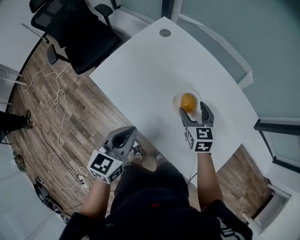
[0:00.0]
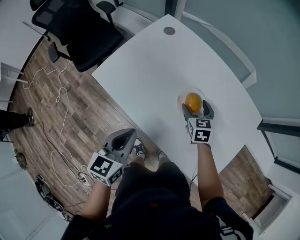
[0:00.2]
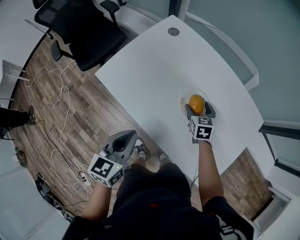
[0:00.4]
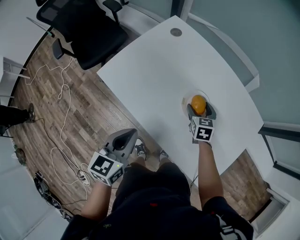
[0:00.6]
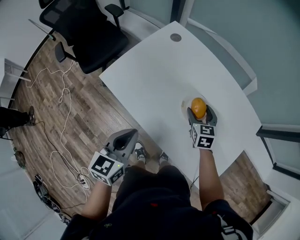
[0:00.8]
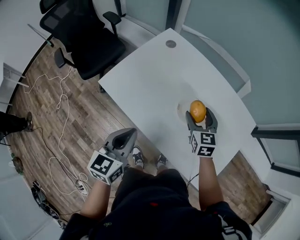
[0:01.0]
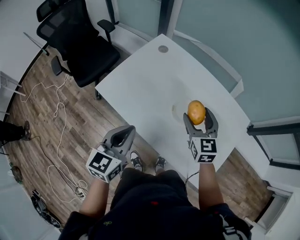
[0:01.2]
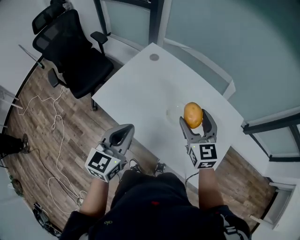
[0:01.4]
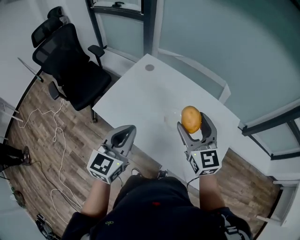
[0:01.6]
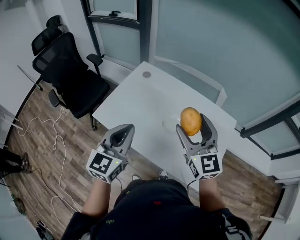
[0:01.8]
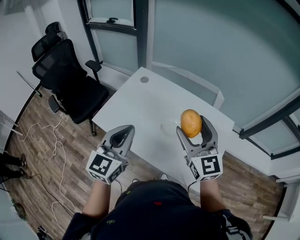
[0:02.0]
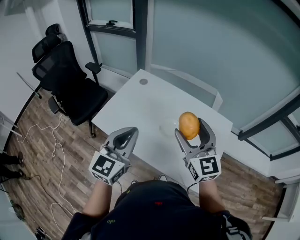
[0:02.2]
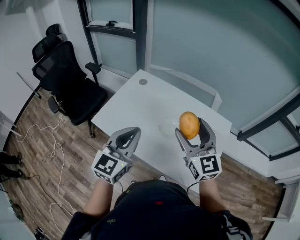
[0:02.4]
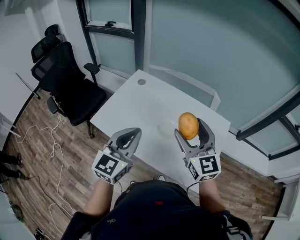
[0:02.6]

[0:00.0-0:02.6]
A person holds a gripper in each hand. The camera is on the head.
0:00.0 to 0:01.2: The right gripper travels upward by about 10 cm. Meanwhile the left gripper goes some 5 cm upward.
0:01.2 to 0:02.6: The left gripper moves upward and to the right, roughly 15 cm, and swivels about 20 degrees. Meanwhile the right gripper goes about 20 cm upward and backward.

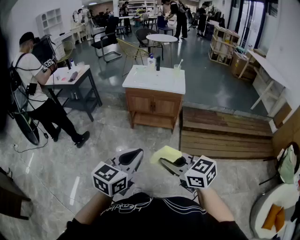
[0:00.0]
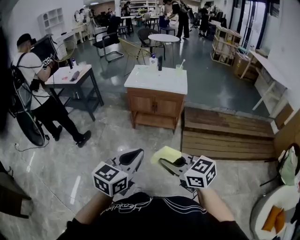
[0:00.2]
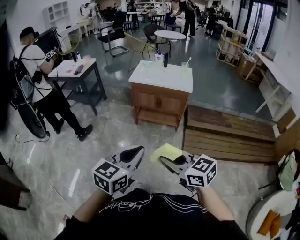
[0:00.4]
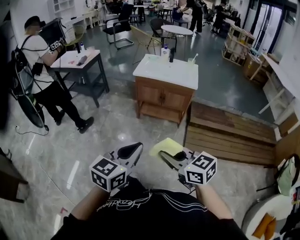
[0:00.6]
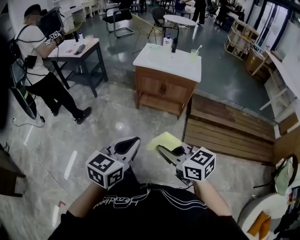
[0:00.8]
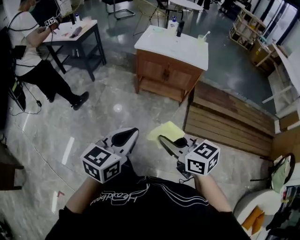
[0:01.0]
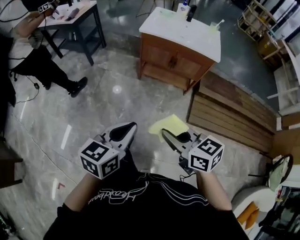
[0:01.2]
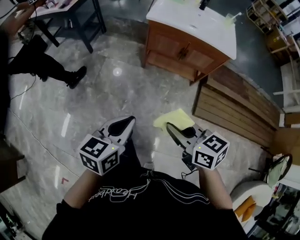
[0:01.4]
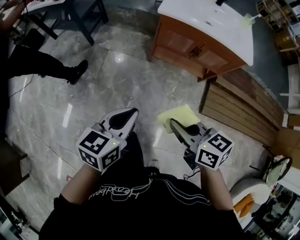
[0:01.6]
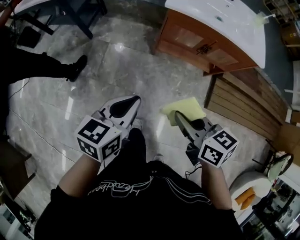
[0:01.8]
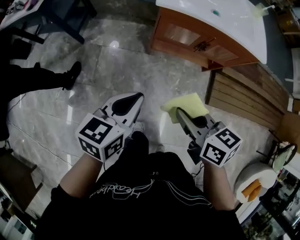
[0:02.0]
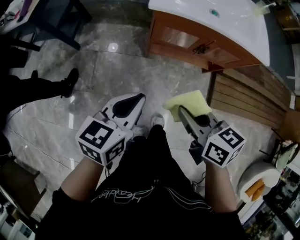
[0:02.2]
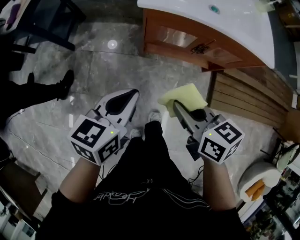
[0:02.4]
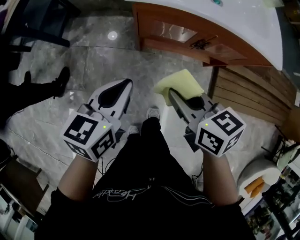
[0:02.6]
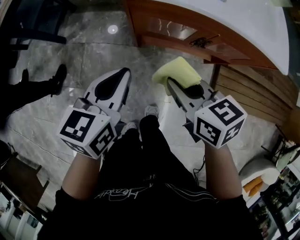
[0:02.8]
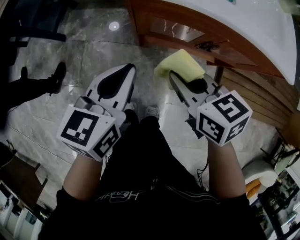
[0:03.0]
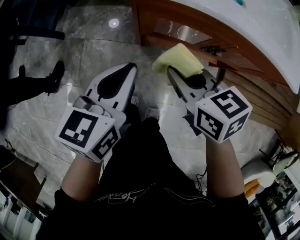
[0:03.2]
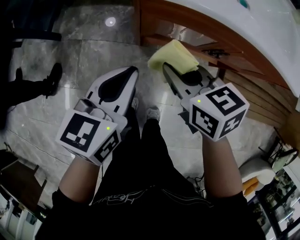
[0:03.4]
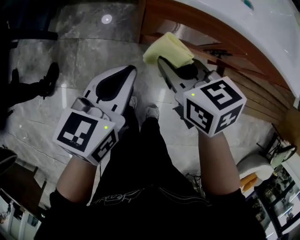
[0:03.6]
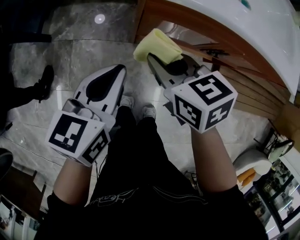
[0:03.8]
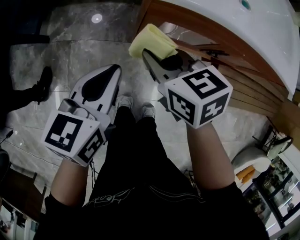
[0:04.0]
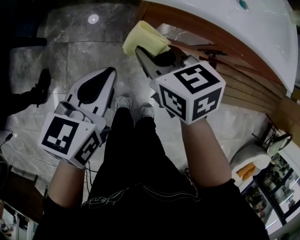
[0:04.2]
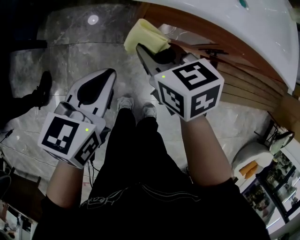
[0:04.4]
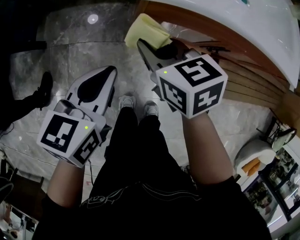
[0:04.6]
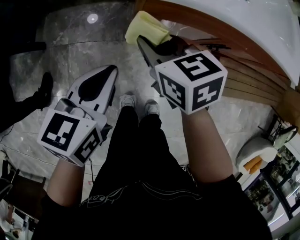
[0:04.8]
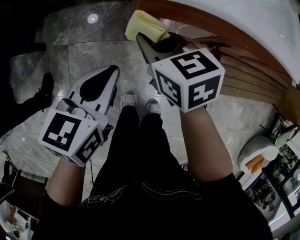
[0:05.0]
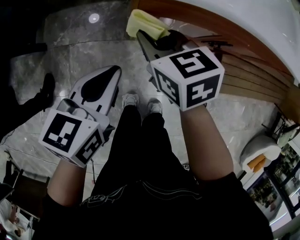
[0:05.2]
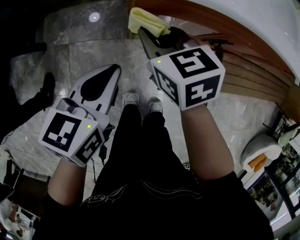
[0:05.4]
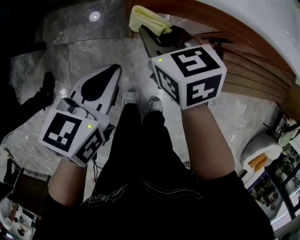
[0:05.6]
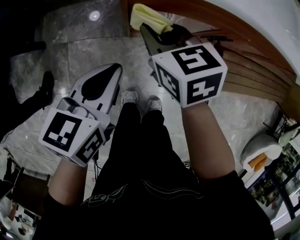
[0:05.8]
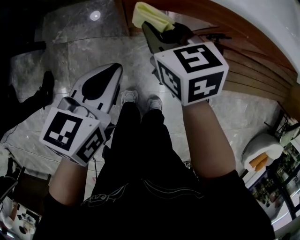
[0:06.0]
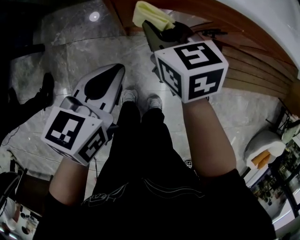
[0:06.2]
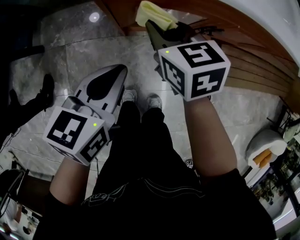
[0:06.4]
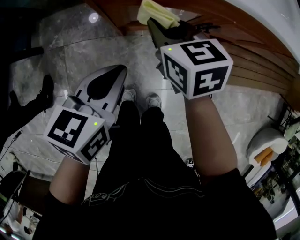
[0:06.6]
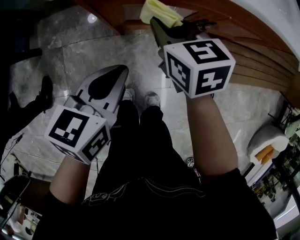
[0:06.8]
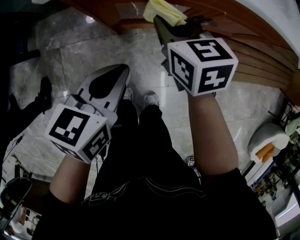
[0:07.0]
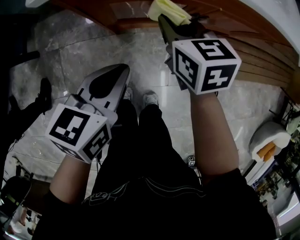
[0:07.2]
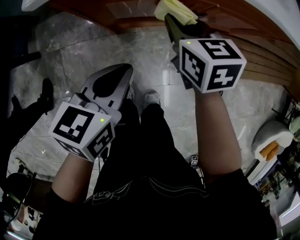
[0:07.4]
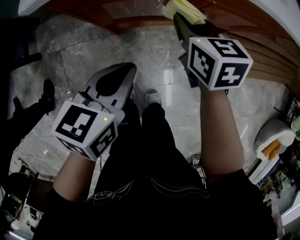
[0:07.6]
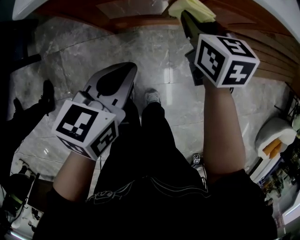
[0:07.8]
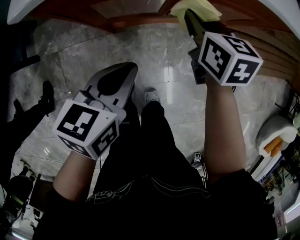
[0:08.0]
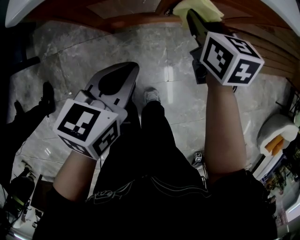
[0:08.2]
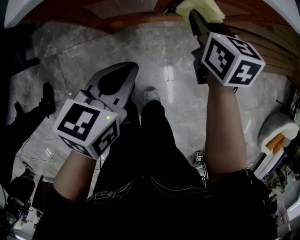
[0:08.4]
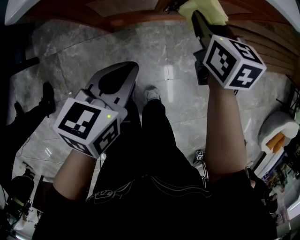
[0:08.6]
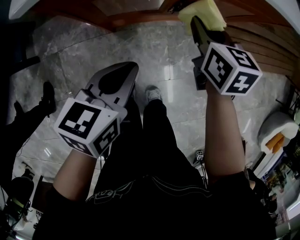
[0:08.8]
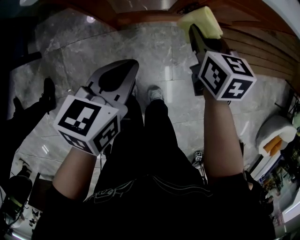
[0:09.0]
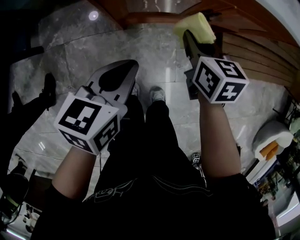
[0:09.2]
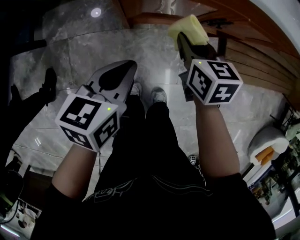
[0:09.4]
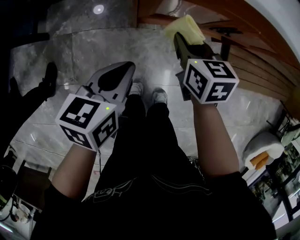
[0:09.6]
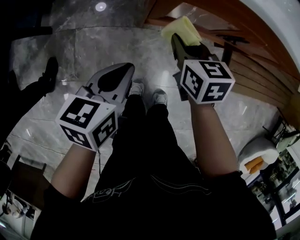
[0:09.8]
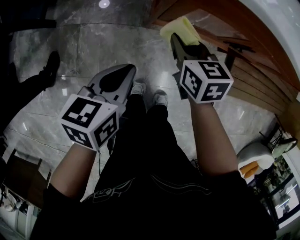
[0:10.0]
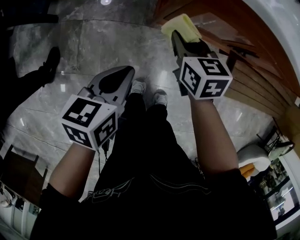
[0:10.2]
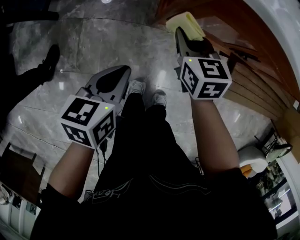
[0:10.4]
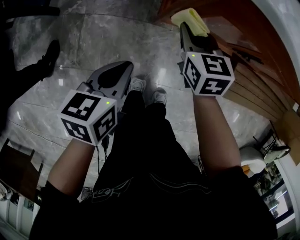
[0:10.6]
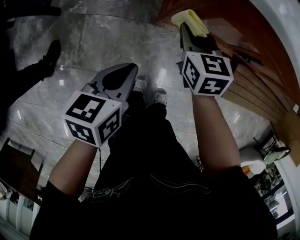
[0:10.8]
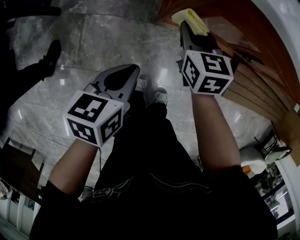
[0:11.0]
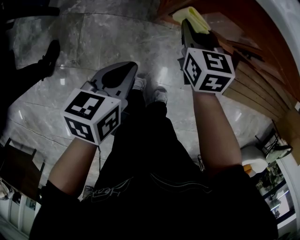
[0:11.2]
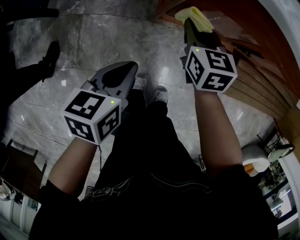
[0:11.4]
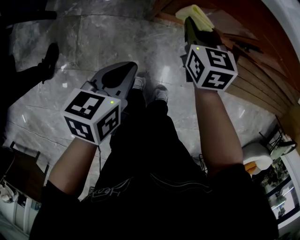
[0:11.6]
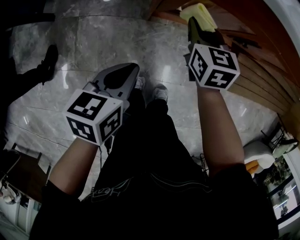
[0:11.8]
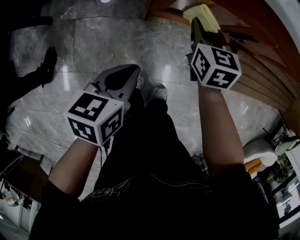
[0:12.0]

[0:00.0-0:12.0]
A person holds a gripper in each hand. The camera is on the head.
0:00.0 to 0:01.6: The right gripper goes some 40 cm forward and downward, and turns by approximately 30 degrees, while the left gripper moves forward, downward and to the left, about 40 cm, and rotates roughly 20 degrees.
0:01.6 to 0:03.0: Both grippers move forward and downward, about 35 cm.
0:03.0 to 0:04.4: The right gripper travels forward, to the left and downward by some 15 cm. The left gripper shifts some 10 cm to the left, downward and forward.
0:04.4 to 0:06.0: The right gripper ends up approximately 5 cm from where it was.
0:06.0 to 0:07.6: The two grippers go about 15 cm to the right.
0:07.6 to 0:09.0: The right gripper ends up about 5 cm from where it was.
0:09.0 to 0:10.4: The two grippers go some 20 cm to the left. The right gripper swivels approximately 20 degrees. The left gripper changes its angle by roughly 20 degrees.
0:10.4 to 0:12.0: Both grippers travel together to the right, roughly 10 cm.

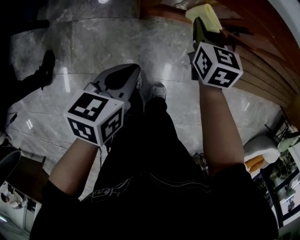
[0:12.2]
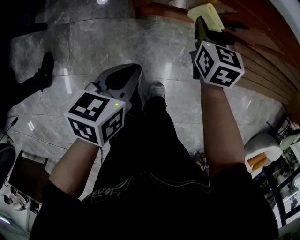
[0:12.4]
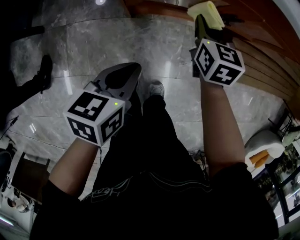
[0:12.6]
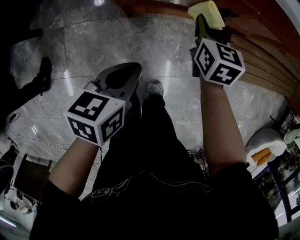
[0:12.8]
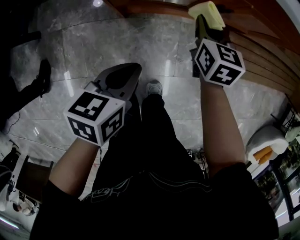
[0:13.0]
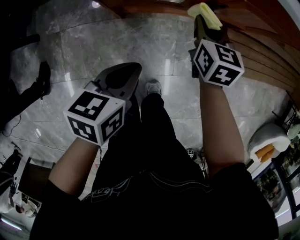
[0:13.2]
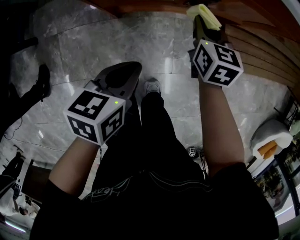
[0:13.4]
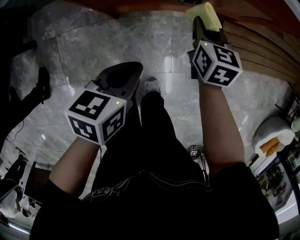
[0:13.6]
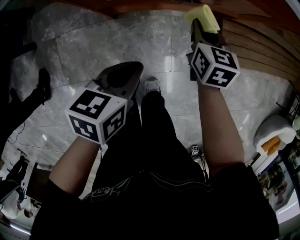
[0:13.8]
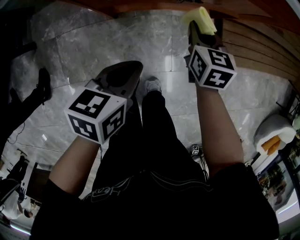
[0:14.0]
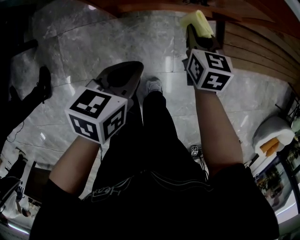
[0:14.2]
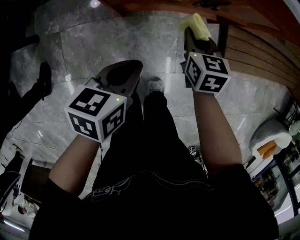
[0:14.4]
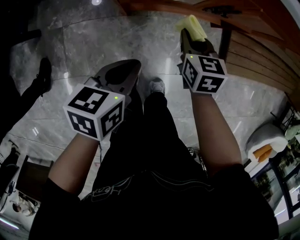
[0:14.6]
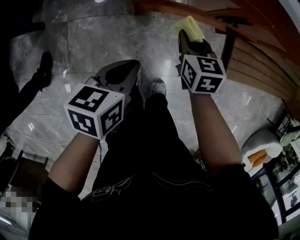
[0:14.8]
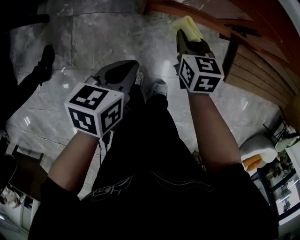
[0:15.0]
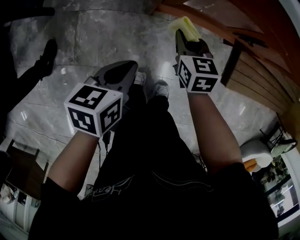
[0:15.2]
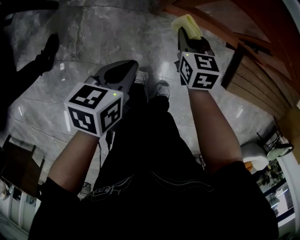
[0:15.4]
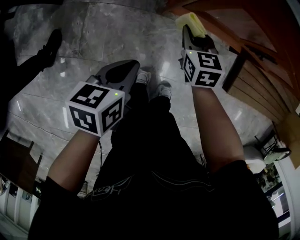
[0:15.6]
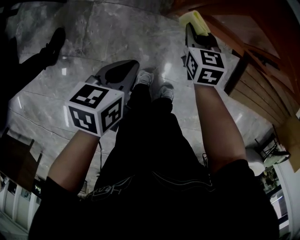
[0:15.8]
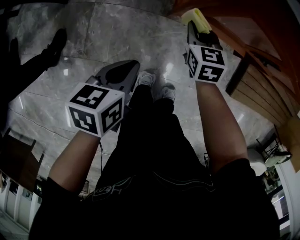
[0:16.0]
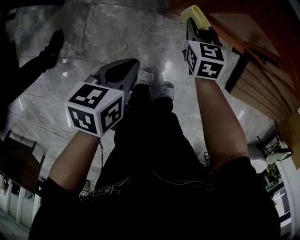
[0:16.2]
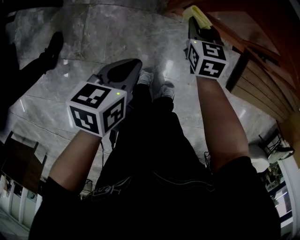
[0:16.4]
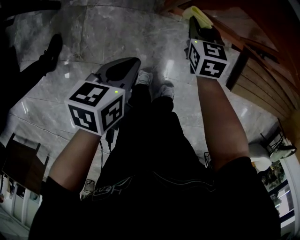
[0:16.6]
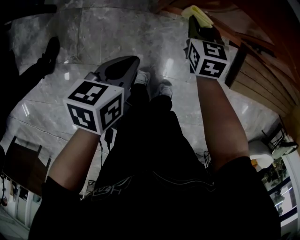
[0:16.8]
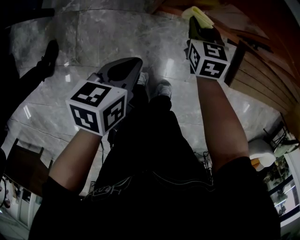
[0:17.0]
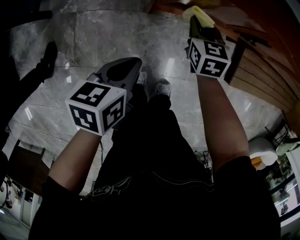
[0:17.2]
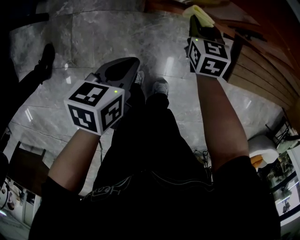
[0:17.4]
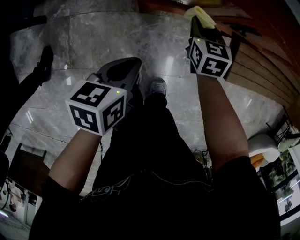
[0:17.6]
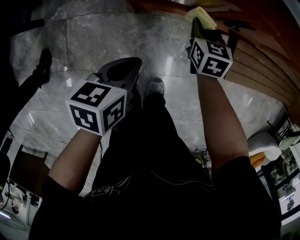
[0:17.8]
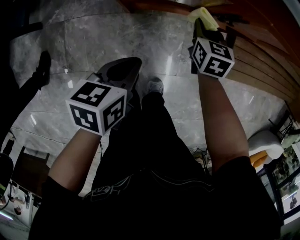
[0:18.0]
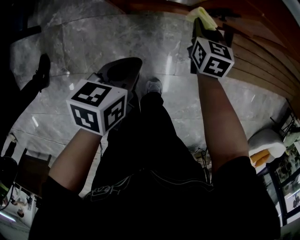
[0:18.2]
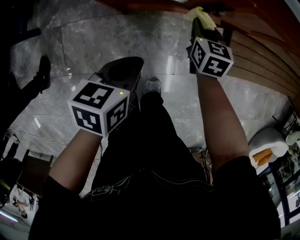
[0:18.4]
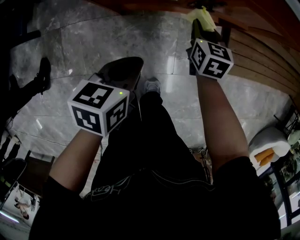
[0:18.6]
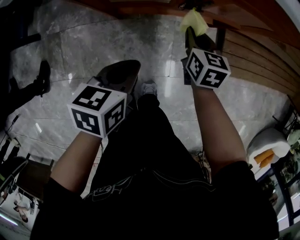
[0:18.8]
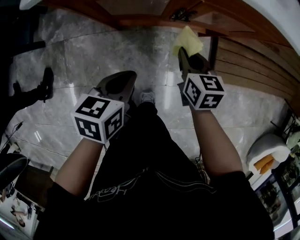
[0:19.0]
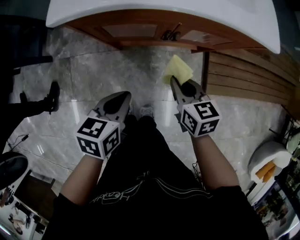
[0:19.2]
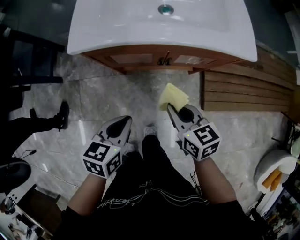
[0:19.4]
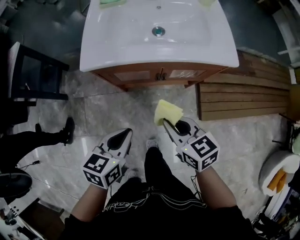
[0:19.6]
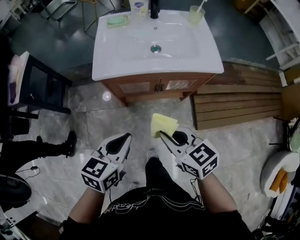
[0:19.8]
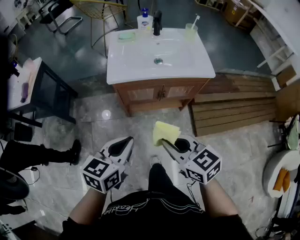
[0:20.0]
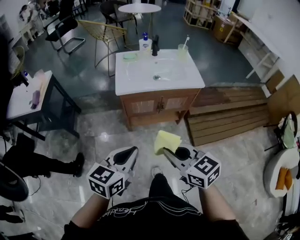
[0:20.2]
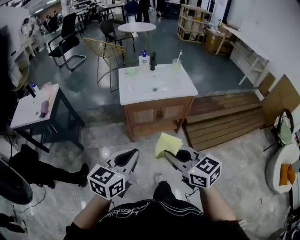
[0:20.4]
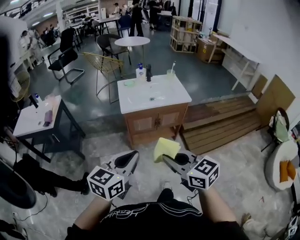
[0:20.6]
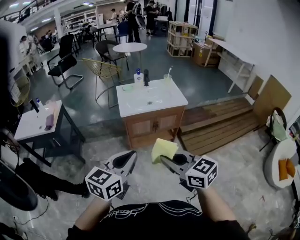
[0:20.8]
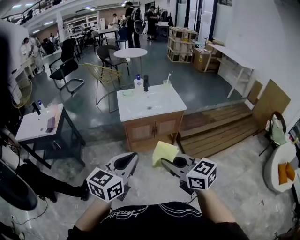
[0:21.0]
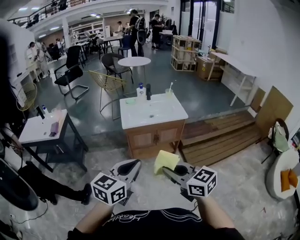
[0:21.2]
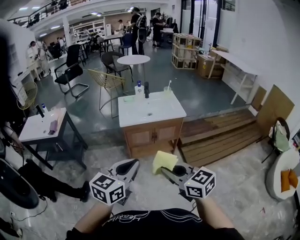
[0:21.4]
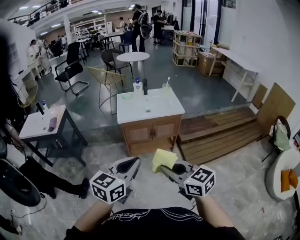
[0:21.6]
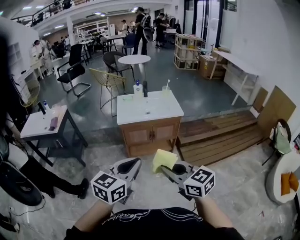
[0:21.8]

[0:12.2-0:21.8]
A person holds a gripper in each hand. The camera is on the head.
0:12.2 to 0:13.8: The grippers both shift to the right by some 15 cm.
0:13.8 to 0:15.4: Both grippers travel together to the left, about 20 cm. The right gripper swivels about 20 degrees; the left gripper changes its angle by approximately 20 degrees.
0:15.4 to 0:17.0: The right gripper is displaced forward by approximately 5 cm.
0:17.0 to 0:18.6: Both grippers travel together to the right, roughly 15 cm.
0:18.6 to 0:20.2: The grippers both shift upward and backward by approximately 60 cm. The left gripper swivels roughly 40 degrees, while the right gripper swivels approximately 40 degrees.
0:20.2 to 0:21.8: The grippers both shift backward and upward by about 25 cm.
